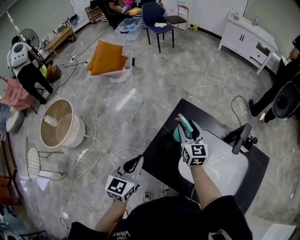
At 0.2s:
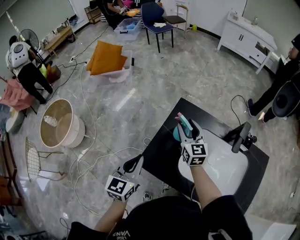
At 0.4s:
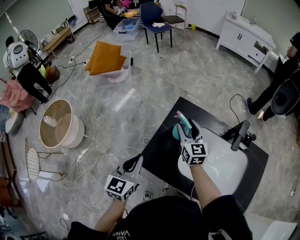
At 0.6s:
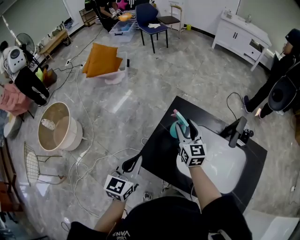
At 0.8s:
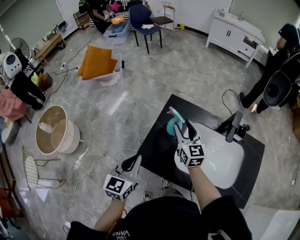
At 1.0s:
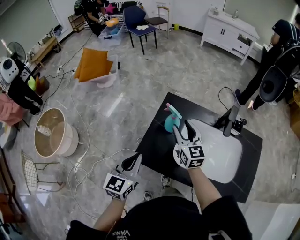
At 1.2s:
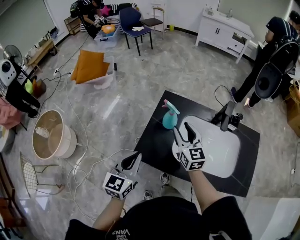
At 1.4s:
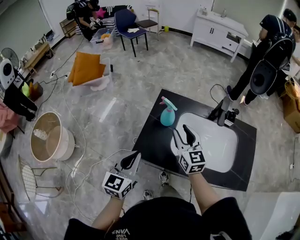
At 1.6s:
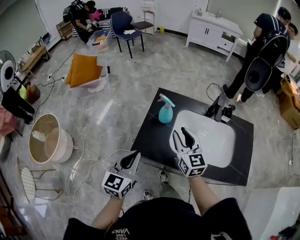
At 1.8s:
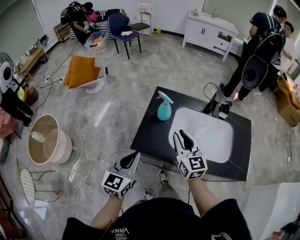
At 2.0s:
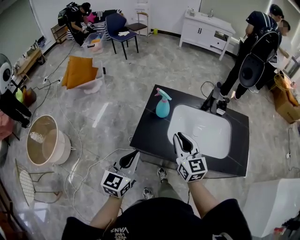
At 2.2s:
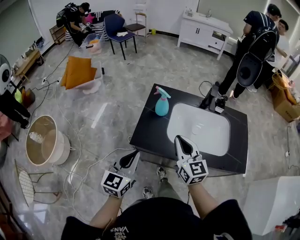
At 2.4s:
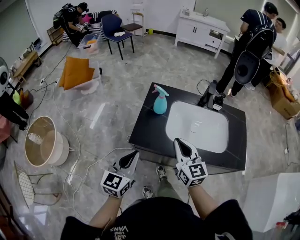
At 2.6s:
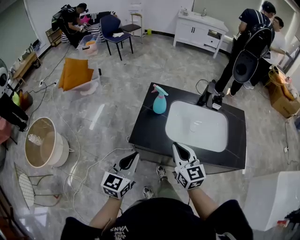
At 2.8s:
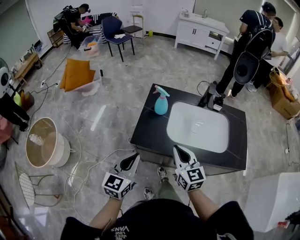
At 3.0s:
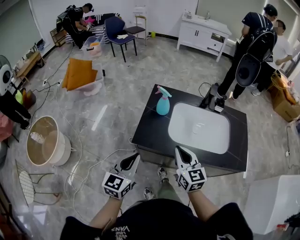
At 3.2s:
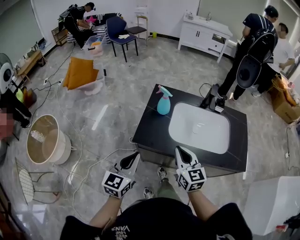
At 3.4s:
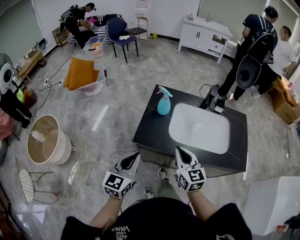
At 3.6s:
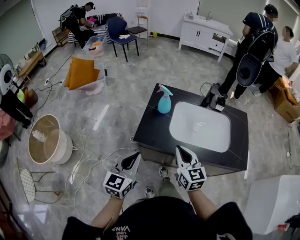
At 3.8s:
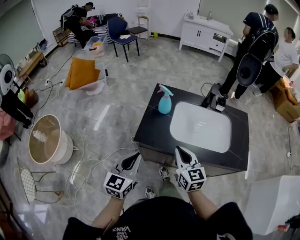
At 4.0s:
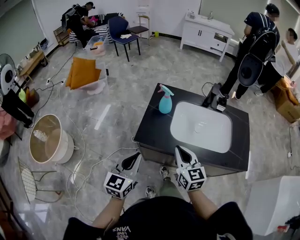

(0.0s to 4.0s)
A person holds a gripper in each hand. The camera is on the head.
0.0s - 1.4s: The right gripper shifts about 15 cm backward. Meanwhile the left gripper travels backward by some 5 cm.
1.4s - 2.6s: The left gripper heads backward, covering about 10 cm. The right gripper heads backward, covering approximately 15 cm, and closes up.
2.6s - 4.0s: The grippers stay close to where they were, moving slightly.

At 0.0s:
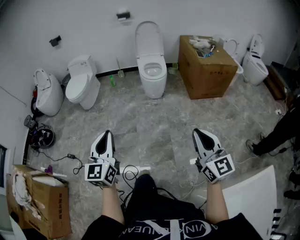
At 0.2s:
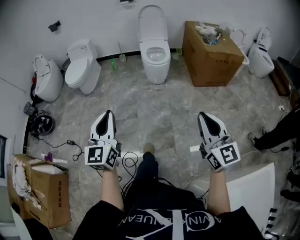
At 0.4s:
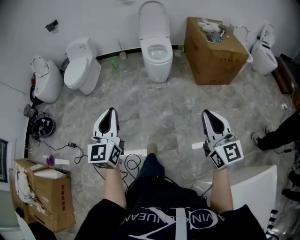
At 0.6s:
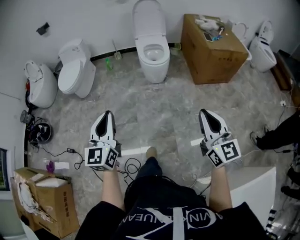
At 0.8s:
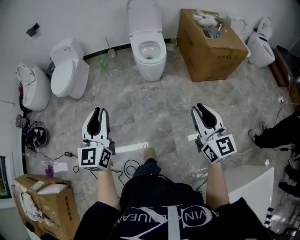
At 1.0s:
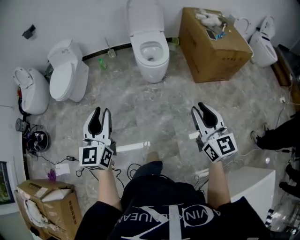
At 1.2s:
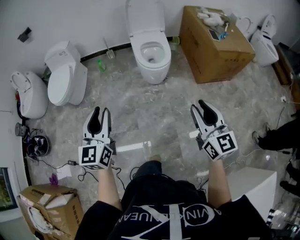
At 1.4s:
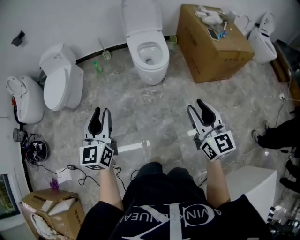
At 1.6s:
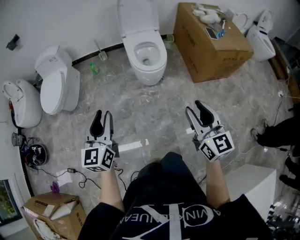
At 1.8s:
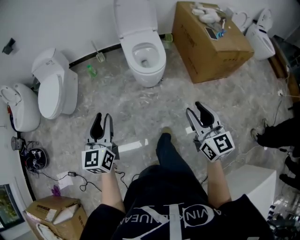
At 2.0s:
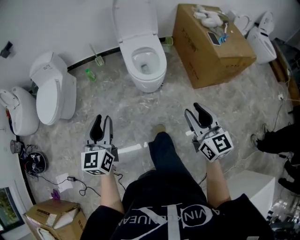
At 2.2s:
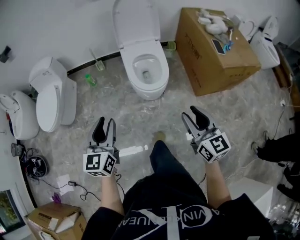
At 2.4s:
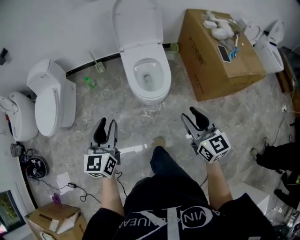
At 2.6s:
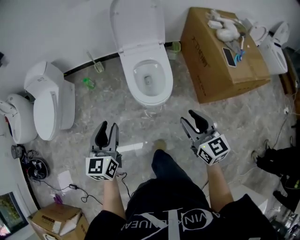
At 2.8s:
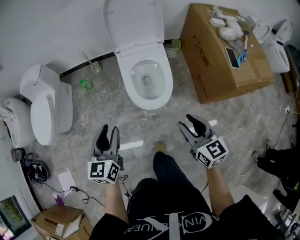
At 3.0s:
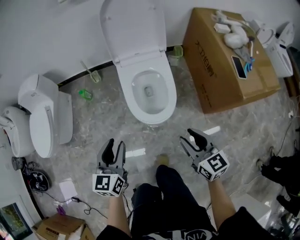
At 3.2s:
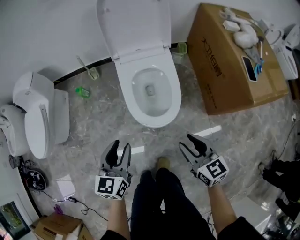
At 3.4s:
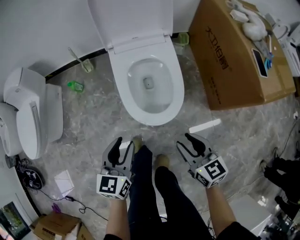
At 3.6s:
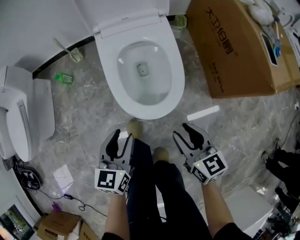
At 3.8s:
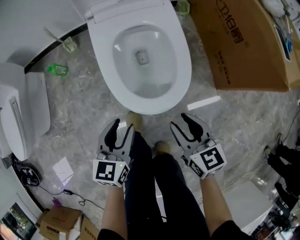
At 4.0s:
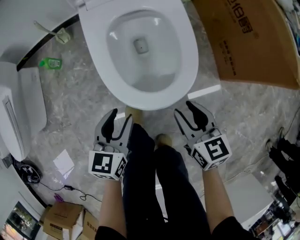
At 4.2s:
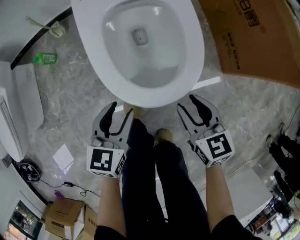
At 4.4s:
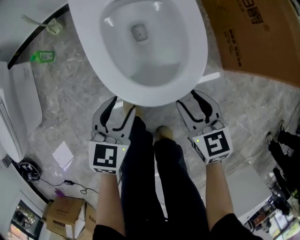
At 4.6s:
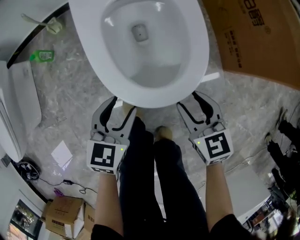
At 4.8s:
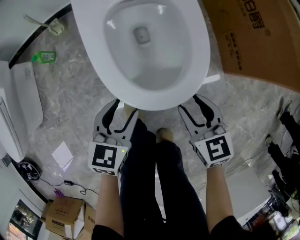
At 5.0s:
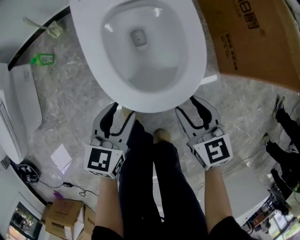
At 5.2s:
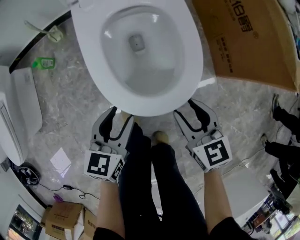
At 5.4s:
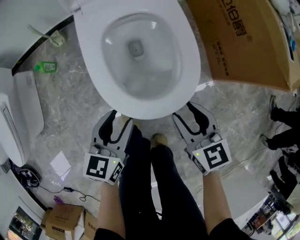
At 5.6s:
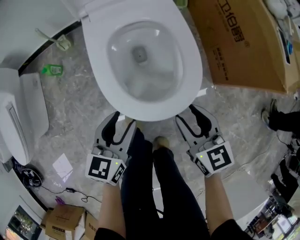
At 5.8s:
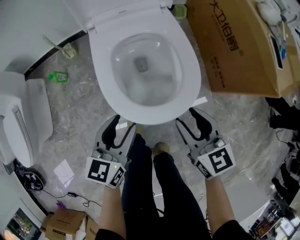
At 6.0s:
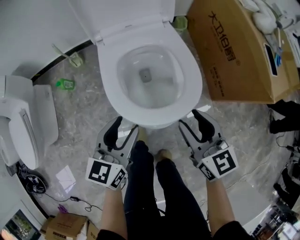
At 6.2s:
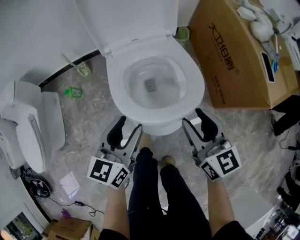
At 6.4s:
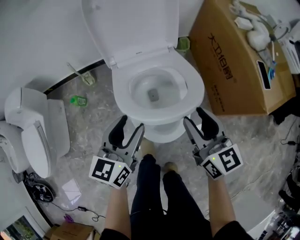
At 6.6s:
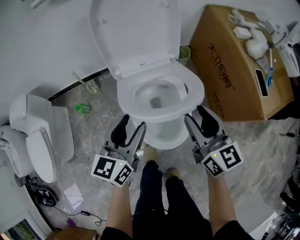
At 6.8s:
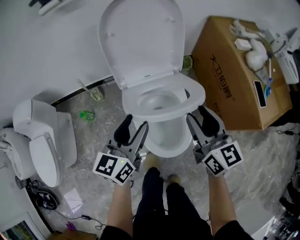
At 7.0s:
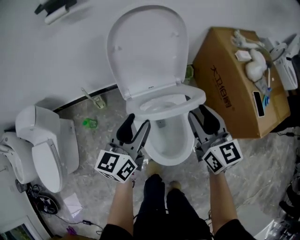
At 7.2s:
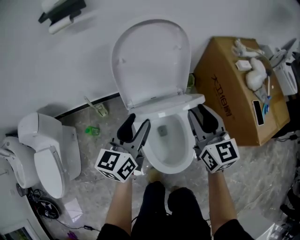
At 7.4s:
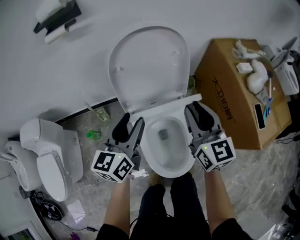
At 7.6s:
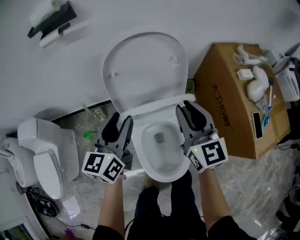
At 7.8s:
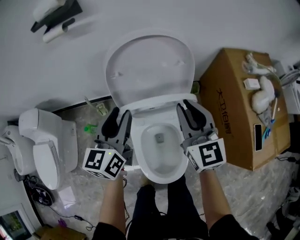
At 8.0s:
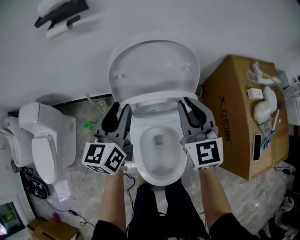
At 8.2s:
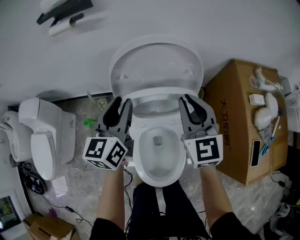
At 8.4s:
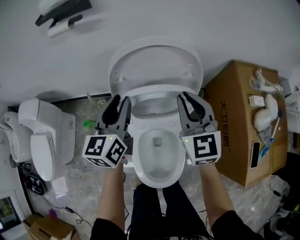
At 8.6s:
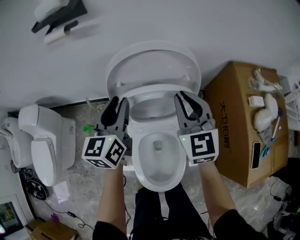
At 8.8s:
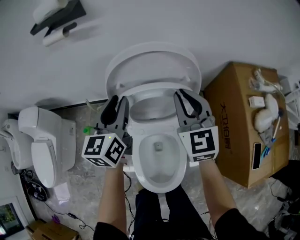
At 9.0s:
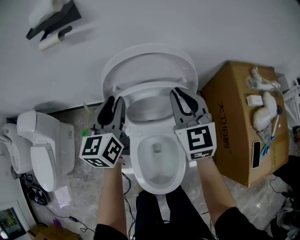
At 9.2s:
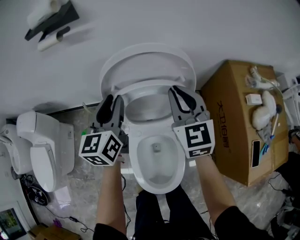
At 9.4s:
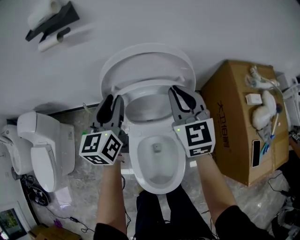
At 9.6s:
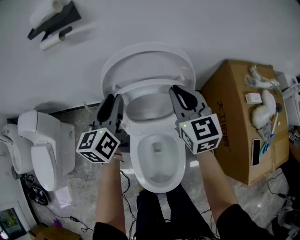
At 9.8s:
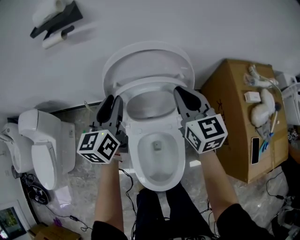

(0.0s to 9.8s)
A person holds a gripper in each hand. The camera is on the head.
0.0s - 1.4s: The two grippers travel together, forward, approximately 50 cm. The left gripper opens its fingers; the right gripper opens its fingers.
1.4s - 2.8s: The grippers both shift forward by approximately 35 cm.
2.8s - 4.2s: The grippers both shift downward by approximately 40 cm. The left gripper swivels approximately 30 degrees.
4.2s - 5.6s: The two grippers go roughly 10 cm upward.
5.6s - 7.0s: The grippers both shift upward and forward by some 35 cm. The right gripper rotates approximately 20 degrees.
7.0s - 8.4s: Both grippers move forward, approximately 20 cm. The right gripper rotates some 20 degrees, and closes up. The left gripper rotates approximately 20 degrees, and closes its fingers.
8.4s - 9.8s: The grippers move only a little.

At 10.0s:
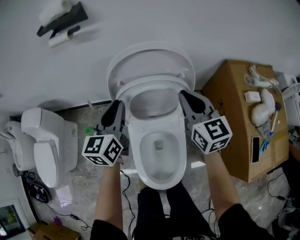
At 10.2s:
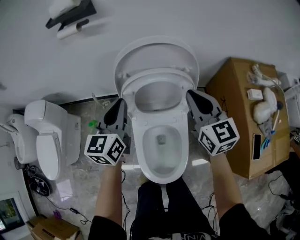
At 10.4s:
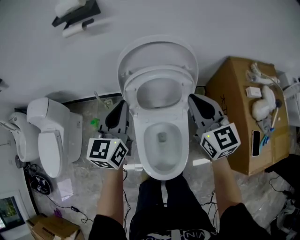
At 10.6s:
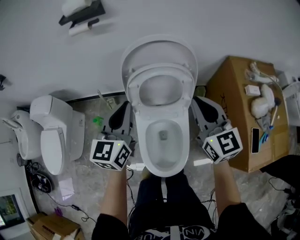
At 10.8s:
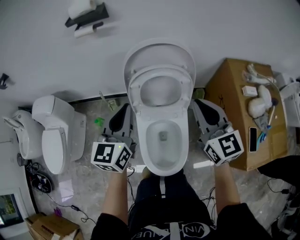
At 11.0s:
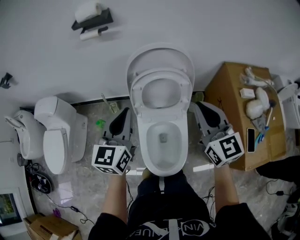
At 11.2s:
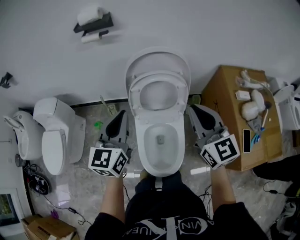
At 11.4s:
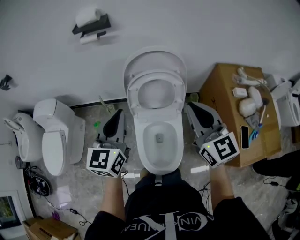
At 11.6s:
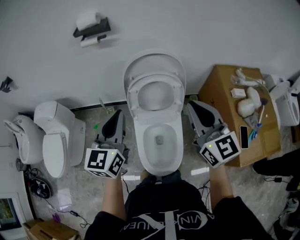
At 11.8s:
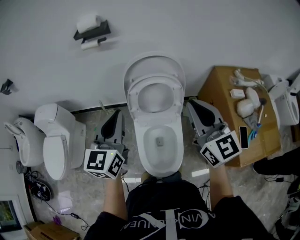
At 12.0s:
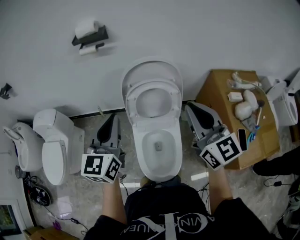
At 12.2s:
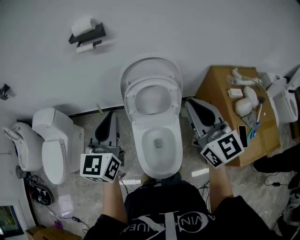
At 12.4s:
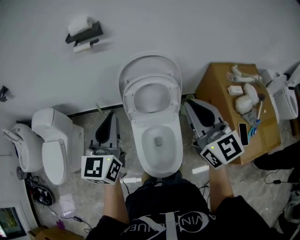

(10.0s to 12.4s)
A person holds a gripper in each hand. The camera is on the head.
10.0s - 11.2s: Both grippers travel together backward and upward, some 20 cm.
11.2s - 12.4s: The two grippers go some 5 cm upward.

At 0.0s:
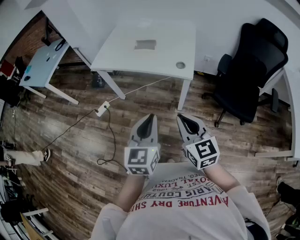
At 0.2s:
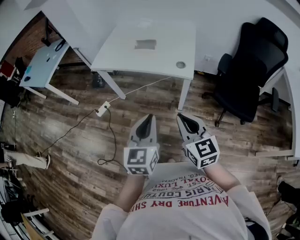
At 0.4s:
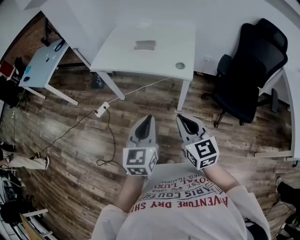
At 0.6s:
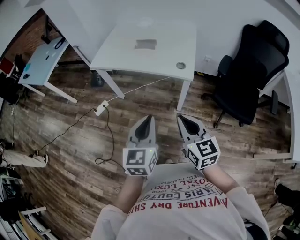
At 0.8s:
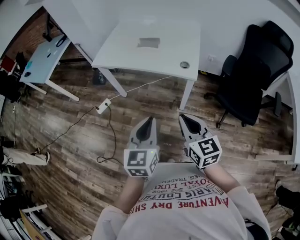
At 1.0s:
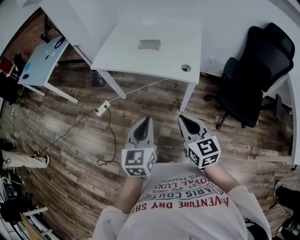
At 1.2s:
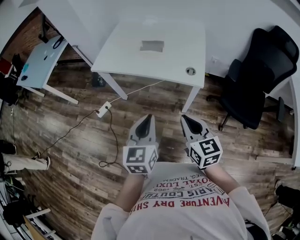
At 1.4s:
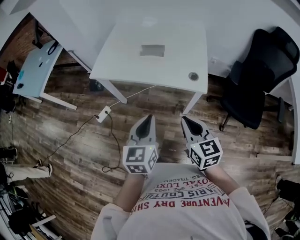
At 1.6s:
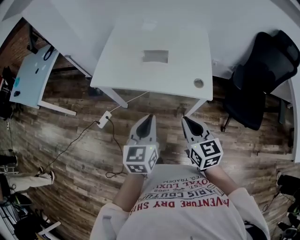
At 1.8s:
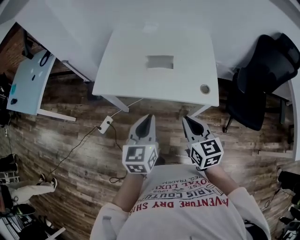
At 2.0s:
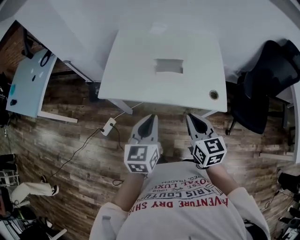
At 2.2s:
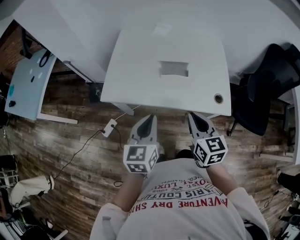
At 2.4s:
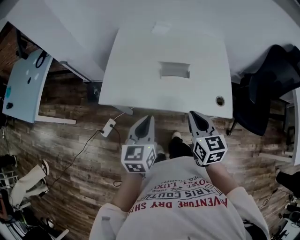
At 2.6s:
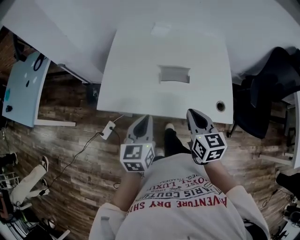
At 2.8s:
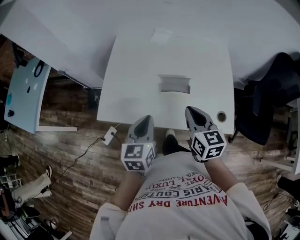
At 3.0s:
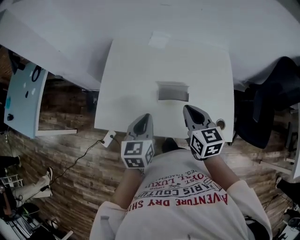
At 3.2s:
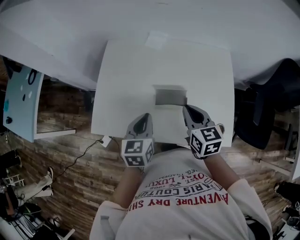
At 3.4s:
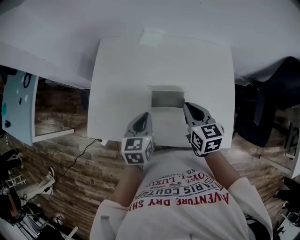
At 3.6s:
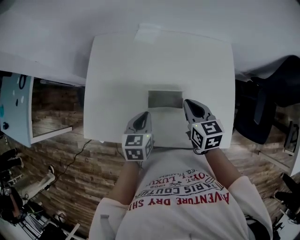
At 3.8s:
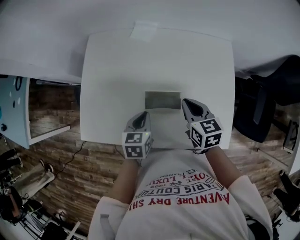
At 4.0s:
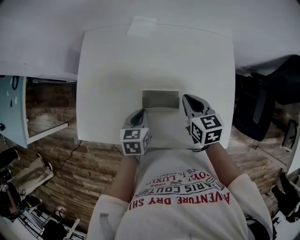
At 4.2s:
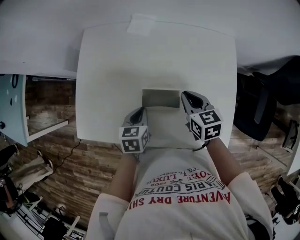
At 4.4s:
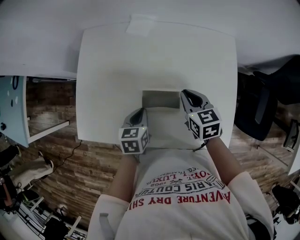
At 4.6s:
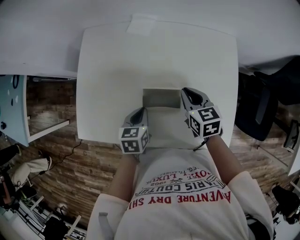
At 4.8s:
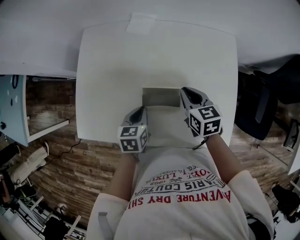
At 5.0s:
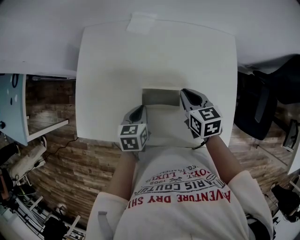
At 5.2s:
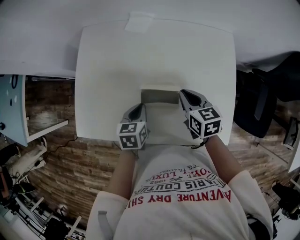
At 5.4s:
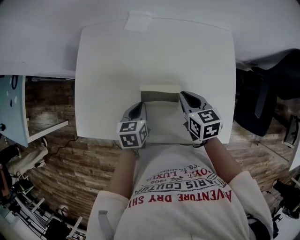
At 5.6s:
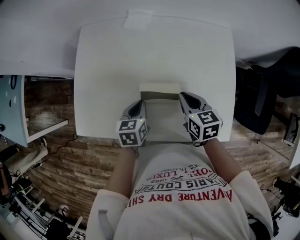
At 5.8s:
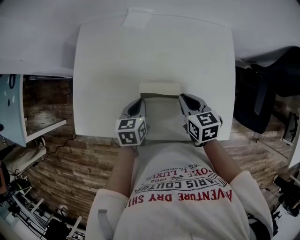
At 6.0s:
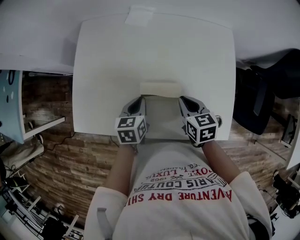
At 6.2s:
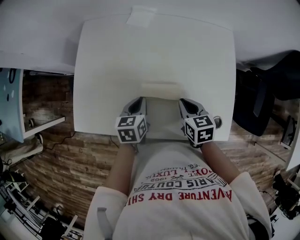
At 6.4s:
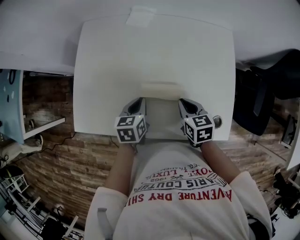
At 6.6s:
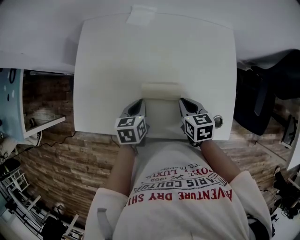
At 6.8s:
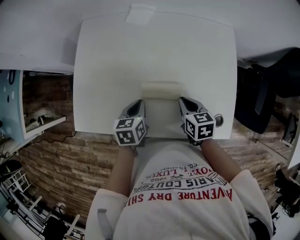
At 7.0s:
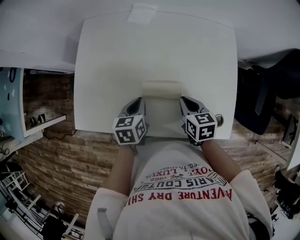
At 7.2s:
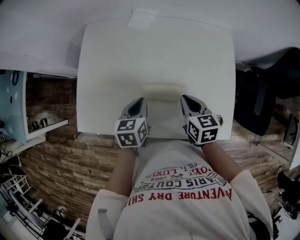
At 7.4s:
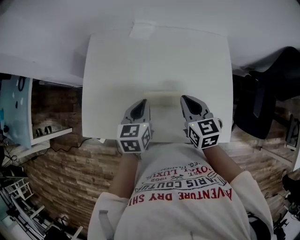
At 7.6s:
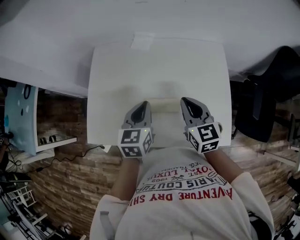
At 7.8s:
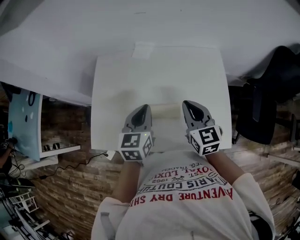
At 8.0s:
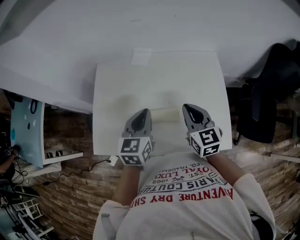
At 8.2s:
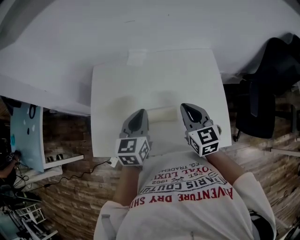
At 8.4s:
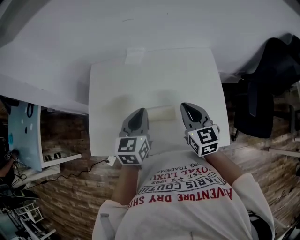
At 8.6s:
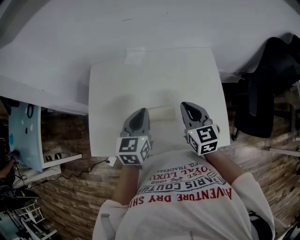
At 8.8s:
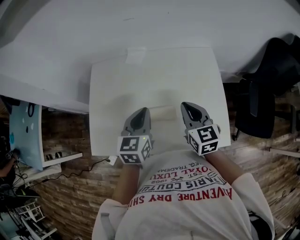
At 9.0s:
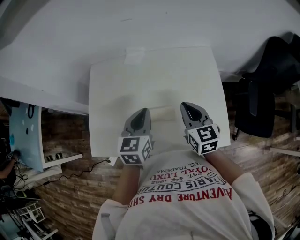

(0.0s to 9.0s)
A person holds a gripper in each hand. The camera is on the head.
0.0s - 1.6s: The left gripper moves forward and to the left, some 25 cm. The right gripper travels forward by about 20 cm.
1.6s - 3.0s: Both grippers move forward, about 30 cm.
3.0s - 4.4s: The left gripper travels downward and forward by some 20 cm, and turns by some 20 degrees. The right gripper is displaced downward, forward and to the right by about 20 cm.
4.4s - 6.0s: The right gripper is displaced backward by roughly 5 cm.
6.0s - 7.6s: Both grippers move upward, some 15 cm. The right gripper turns by some 30 degrees.
7.6s - 9.0s: There are only small adjustments of the grippers.
